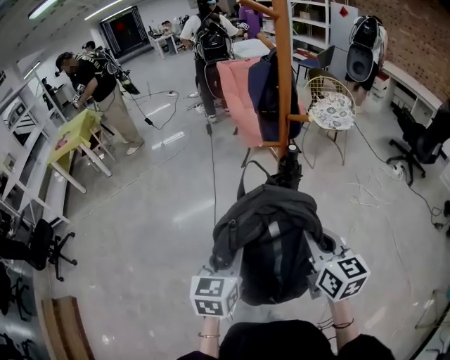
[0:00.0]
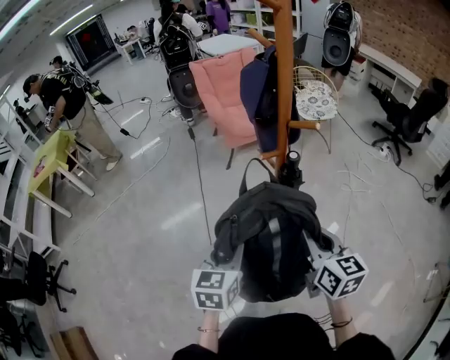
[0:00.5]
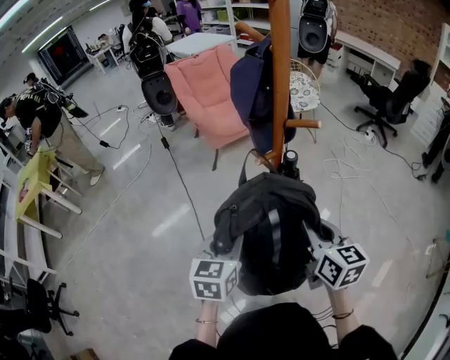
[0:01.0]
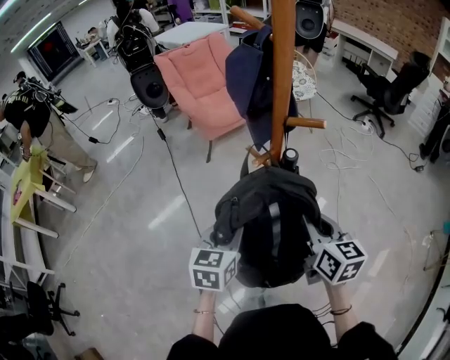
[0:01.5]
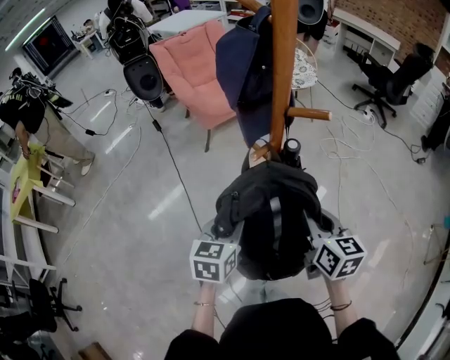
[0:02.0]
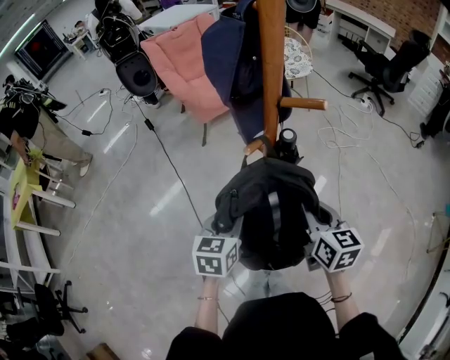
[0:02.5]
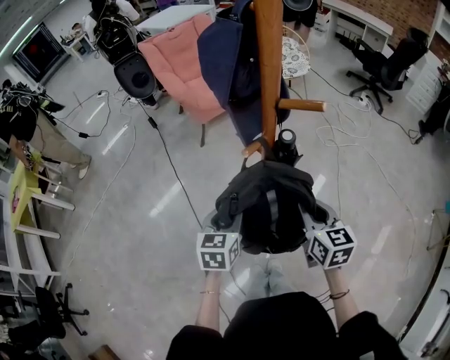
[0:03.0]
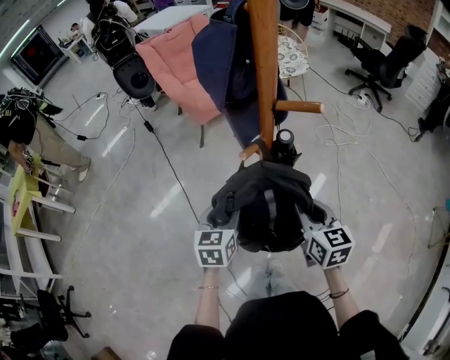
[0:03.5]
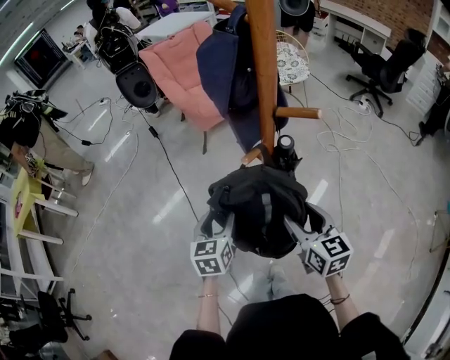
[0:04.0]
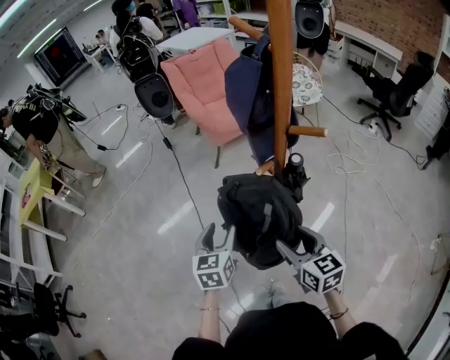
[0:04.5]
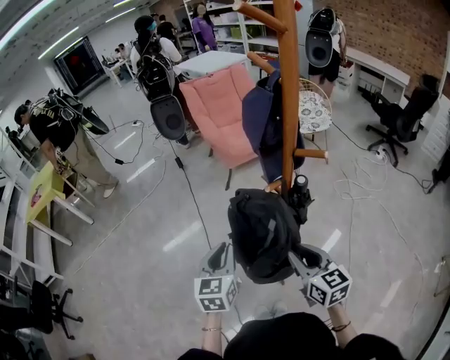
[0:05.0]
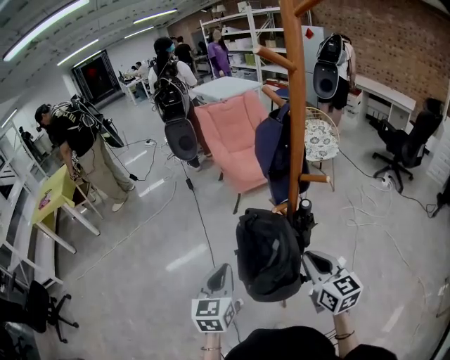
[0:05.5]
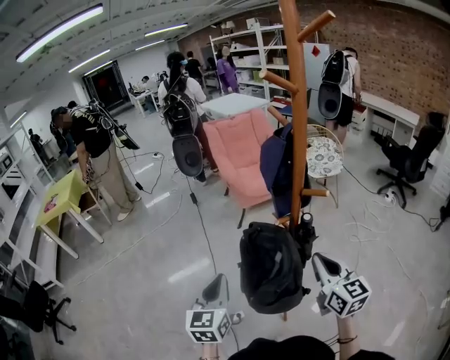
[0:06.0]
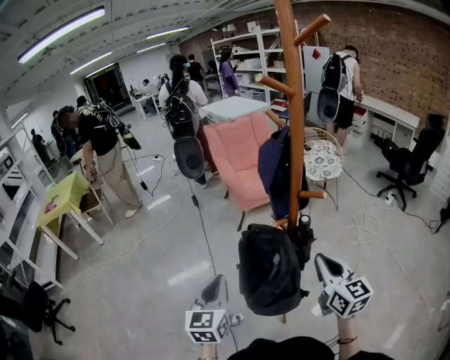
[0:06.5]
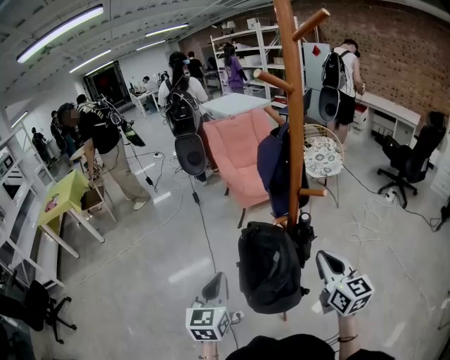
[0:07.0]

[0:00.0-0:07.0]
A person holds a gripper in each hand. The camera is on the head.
0:00.0 to 0:02.0: Both grippers move forward and downward, roughly 20 cm. The left gripper turns by some 30 degrees, while the right gripper changes its angle by about 20 degrees.
0:02.0 to 0:03.5: The left gripper moves roughly 5 cm.
0:03.5 to 0:05.0: The left gripper heads upward, to the left and backward, covering approximately 15 cm, and closes up. The right gripper heads to the left, covering about 5 cm, and opens, then closes again.
0:05.0 to 0:07.0: The left gripper travels upward by roughly 5 cm; the right gripper goes roughly 10 cm upward and to the right, and closes.

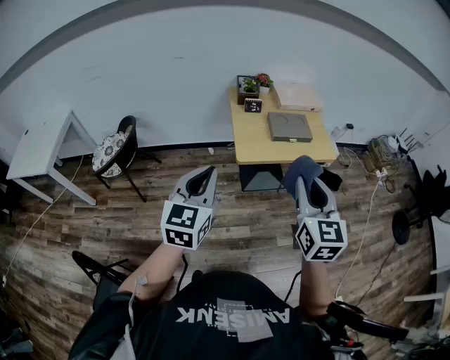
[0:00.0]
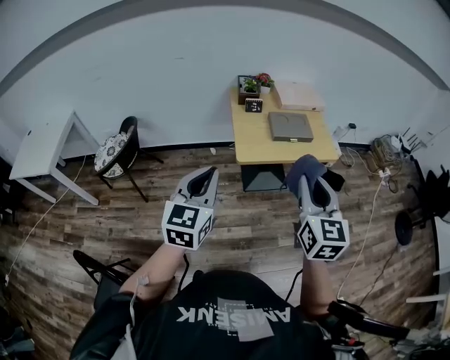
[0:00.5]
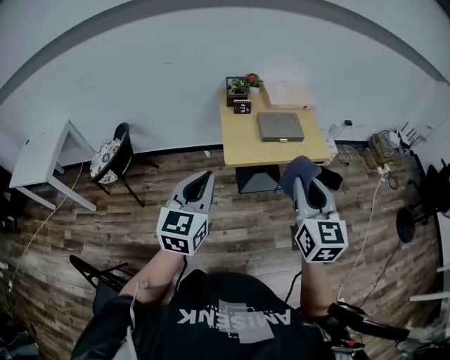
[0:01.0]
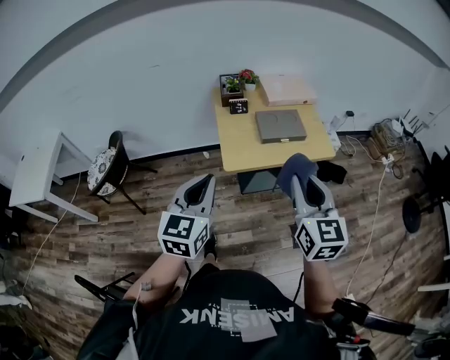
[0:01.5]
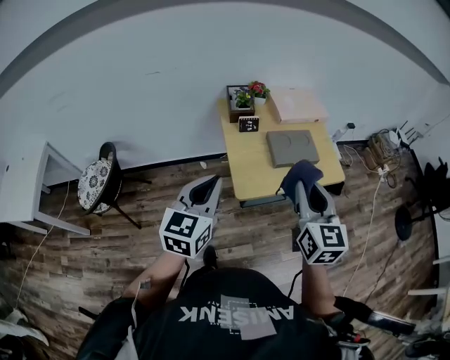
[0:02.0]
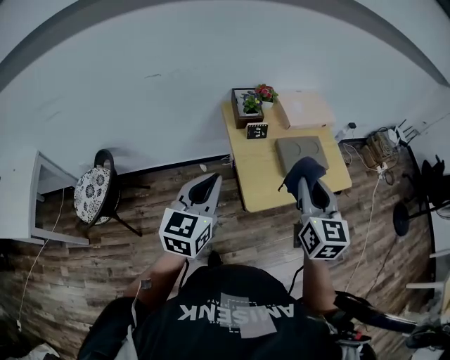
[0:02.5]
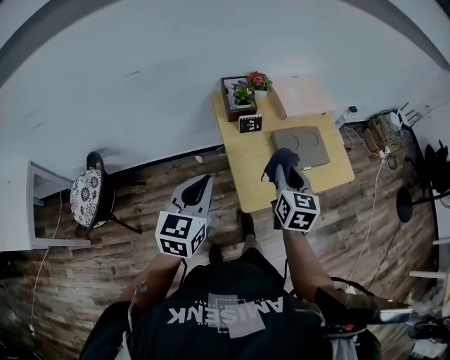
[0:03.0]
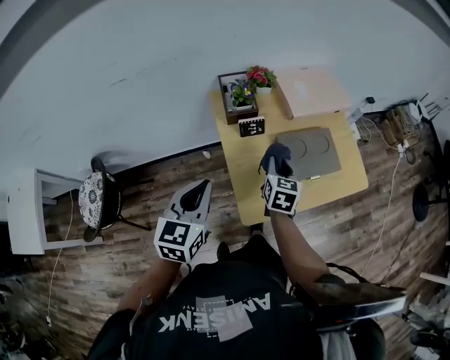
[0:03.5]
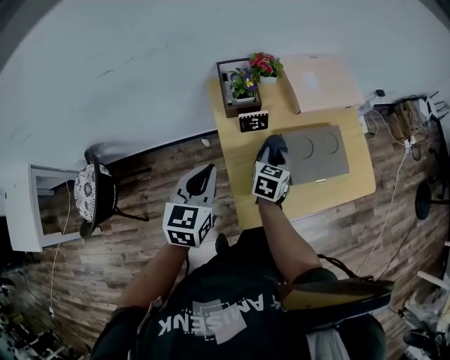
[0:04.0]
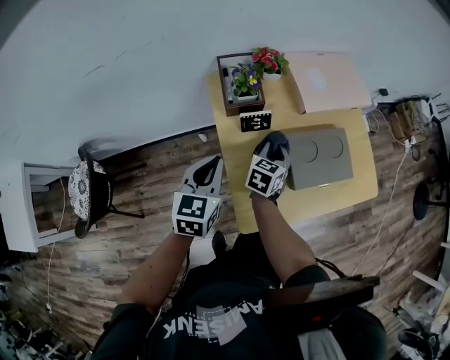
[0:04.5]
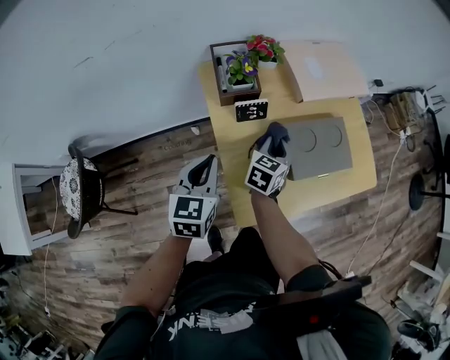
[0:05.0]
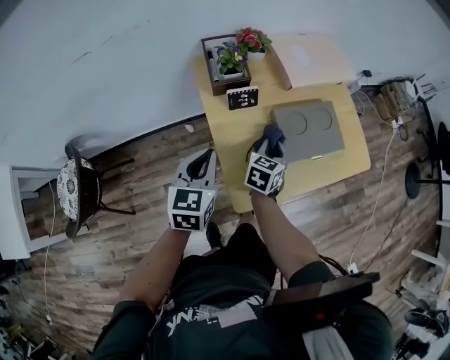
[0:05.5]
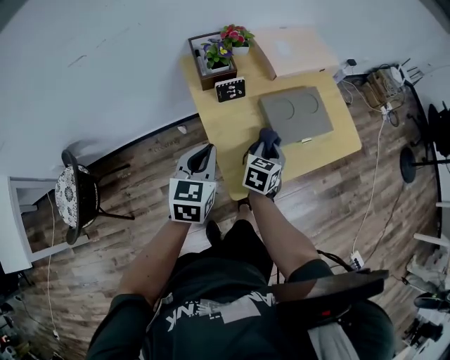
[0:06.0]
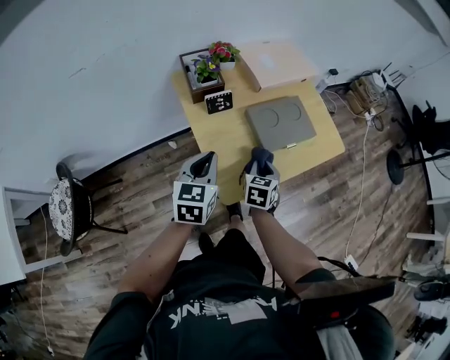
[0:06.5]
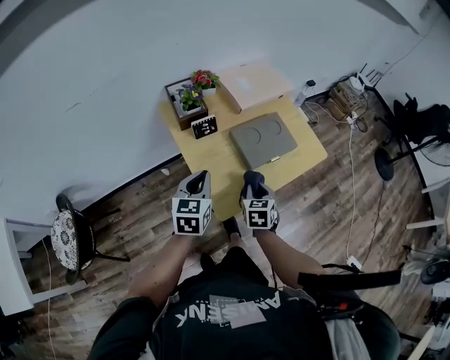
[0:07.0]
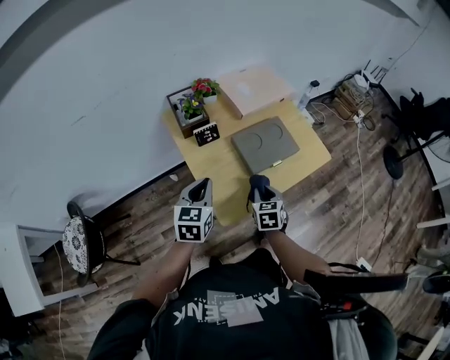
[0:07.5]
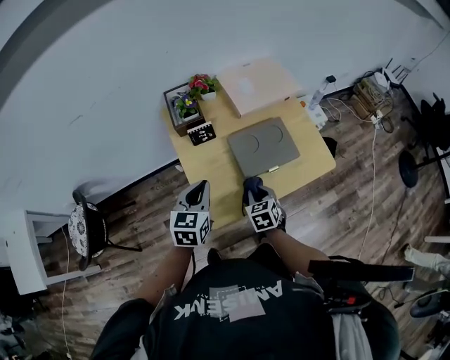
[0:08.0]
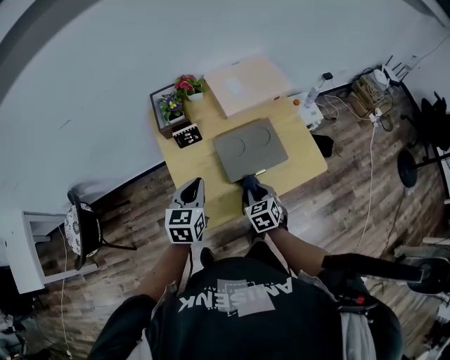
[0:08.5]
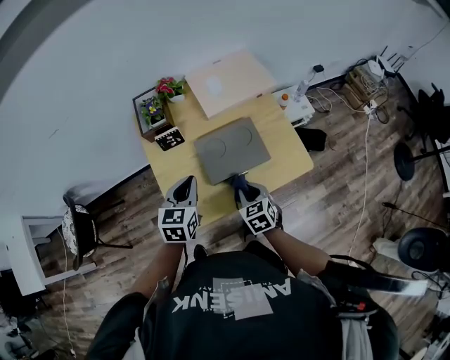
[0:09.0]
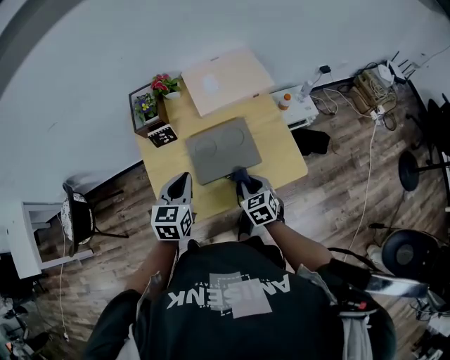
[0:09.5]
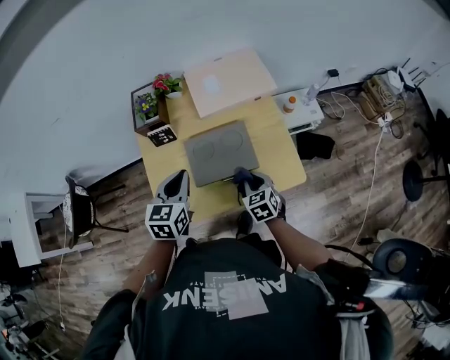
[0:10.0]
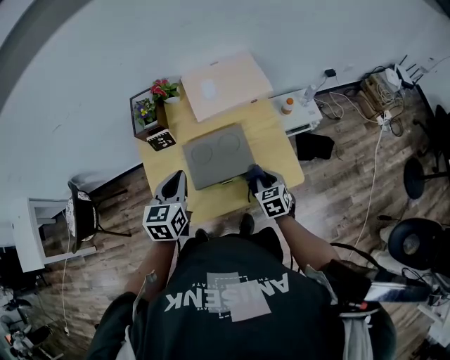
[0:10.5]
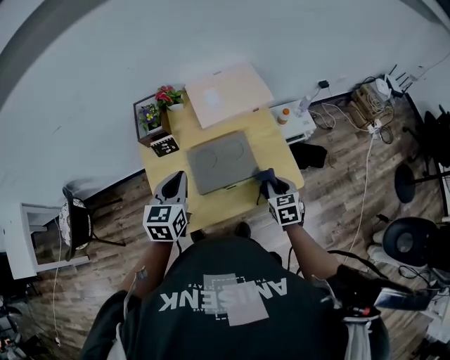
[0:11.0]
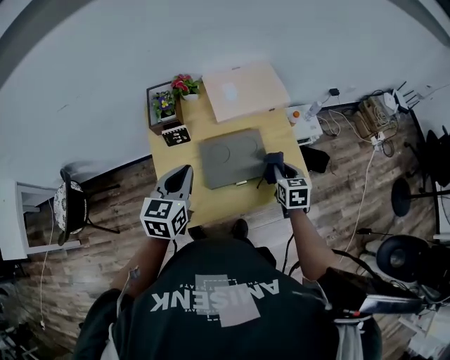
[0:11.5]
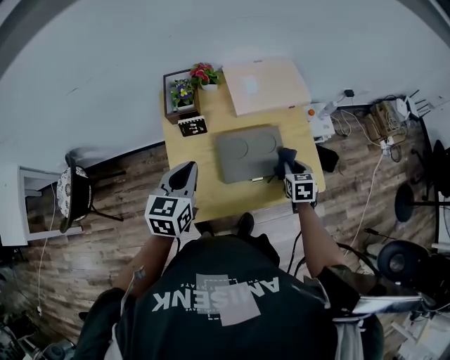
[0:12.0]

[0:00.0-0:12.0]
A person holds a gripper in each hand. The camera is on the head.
0:00.0 to 0:02.0: Both grippers travel together forward, roughly 20 cm.
0:02.0 to 0:04.0: The left gripper is displaced forward and downward by about 30 cm; the right gripper goes some 50 cm forward and downward, and turns by roughly 30 degrees.
0:04.0 to 0:06.0: The left gripper is displaced downward by about 5 cm. Meanwhile the right gripper travels backward and to the right by some 10 cm.
0:06.0 to 0:08.0: The two grippers go roughly 5 cm to the right. The right gripper rotates approximately 30 degrees.
0:08.0 to 0:10.0: The grippers both shift to the right by roughly 15 cm.
0:10.0 to 0:12.0: The right gripper goes some 10 cm forward and to the right; the left gripper moves to the left, approximately 10 cm.

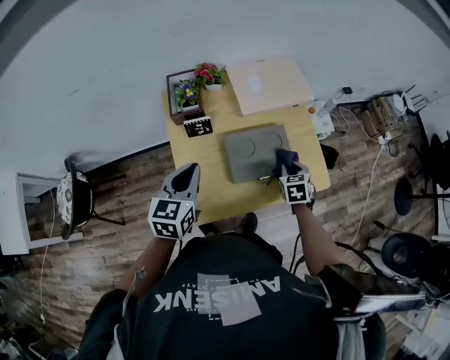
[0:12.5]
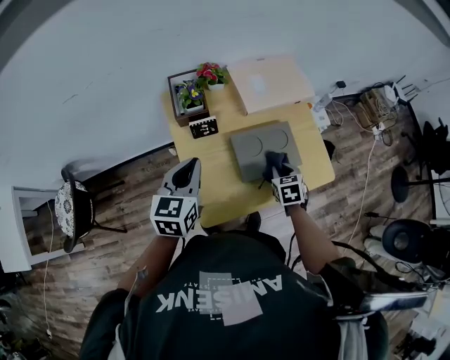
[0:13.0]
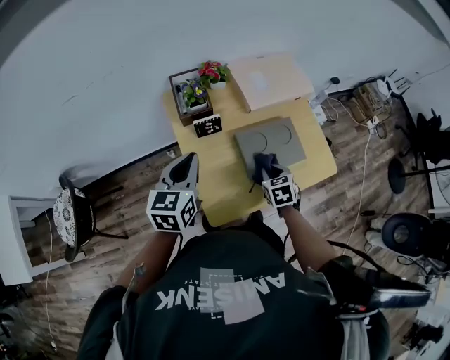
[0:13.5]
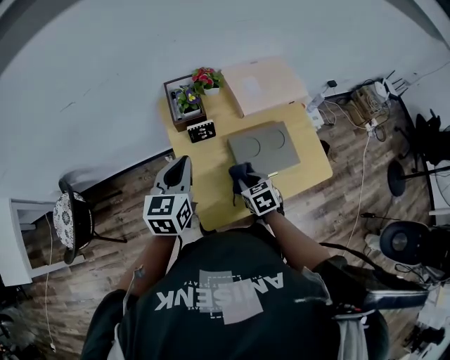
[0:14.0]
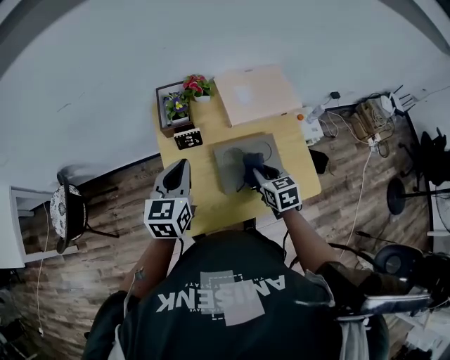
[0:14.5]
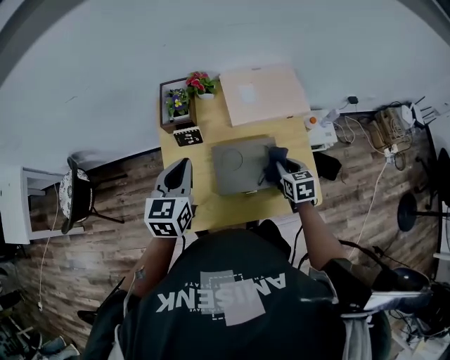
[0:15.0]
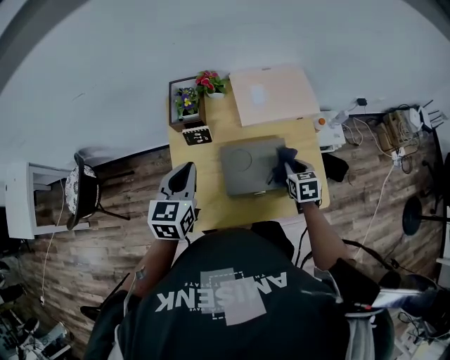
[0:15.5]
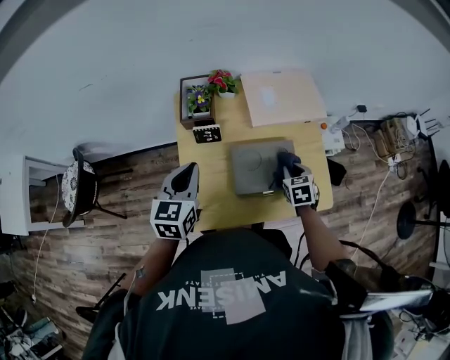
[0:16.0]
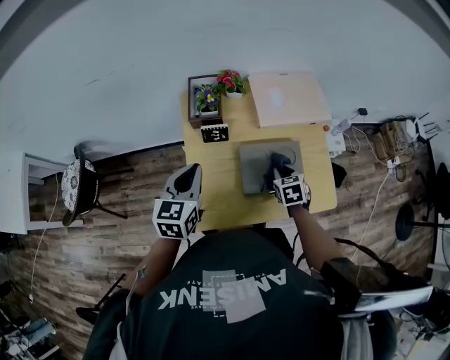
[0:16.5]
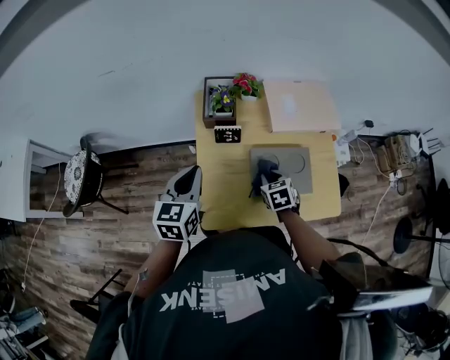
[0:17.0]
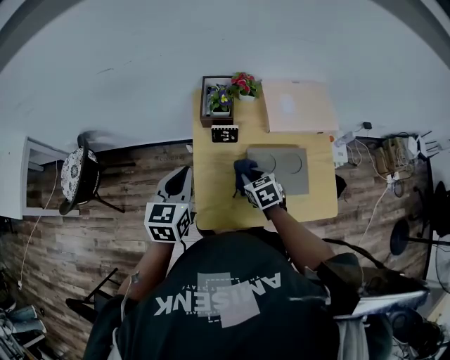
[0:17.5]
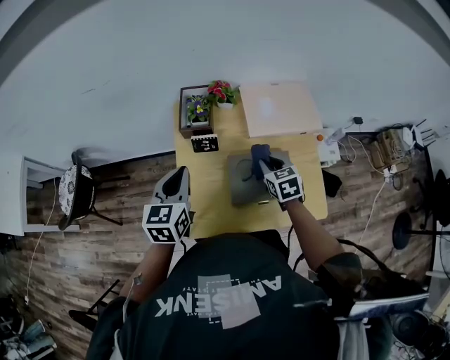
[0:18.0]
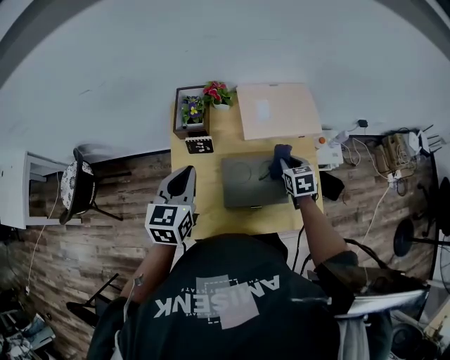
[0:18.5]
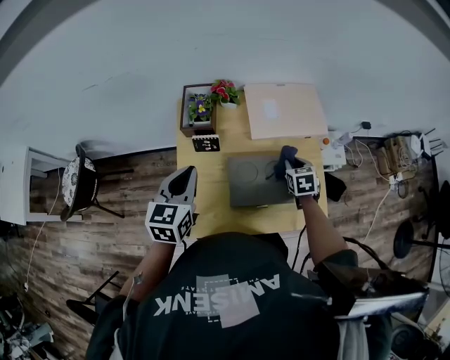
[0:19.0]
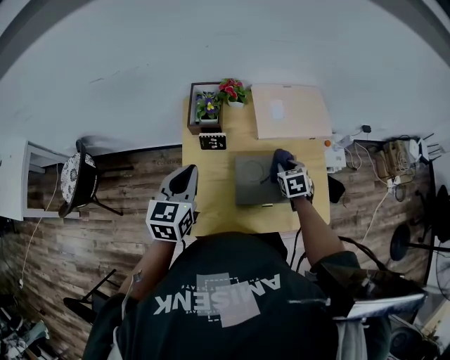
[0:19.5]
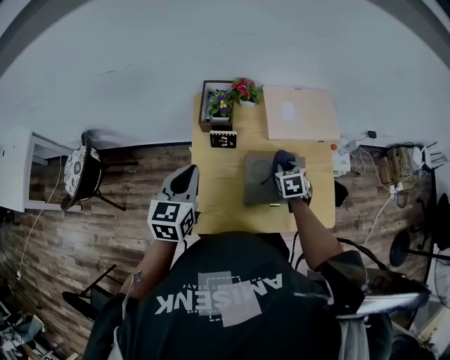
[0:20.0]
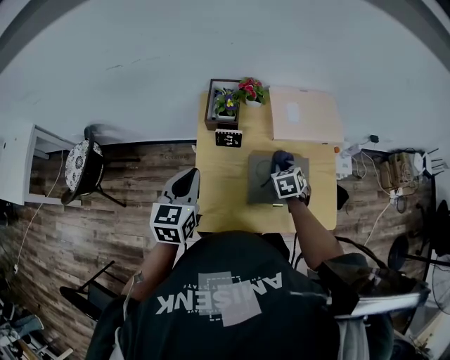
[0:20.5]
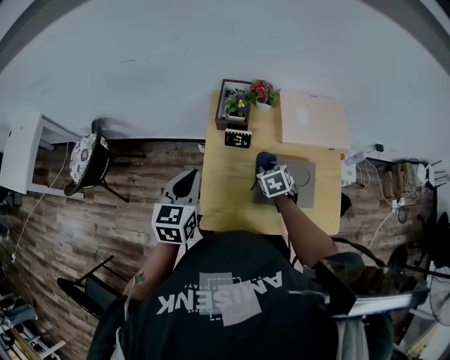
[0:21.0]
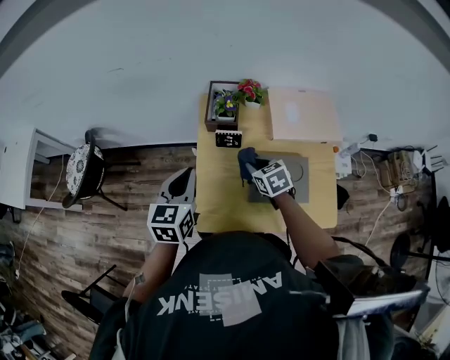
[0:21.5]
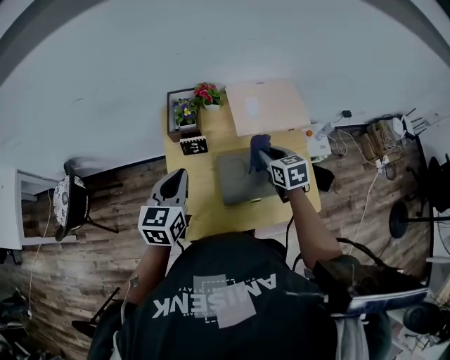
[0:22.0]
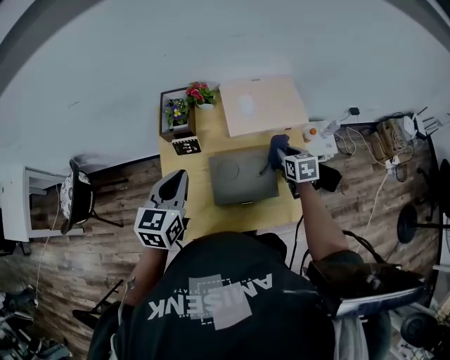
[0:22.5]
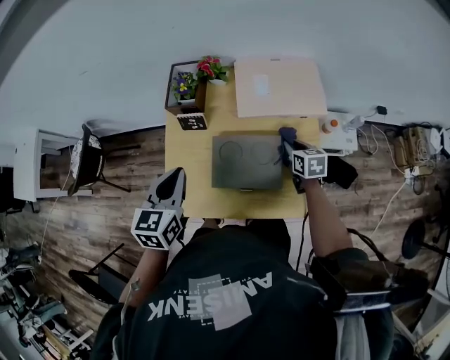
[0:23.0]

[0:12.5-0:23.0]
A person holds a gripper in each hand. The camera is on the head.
0:12.5 to 0:14.5: The right gripper moves to the left and upward, approximately 10 cm, and swivels approximately 20 degrees.
0:14.5 to 0:16.5: The right gripper travels to the right and back again, some 10 cm each way.
0:16.5 to 0:19.0: The right gripper moves to the right and forward, roughly 10 cm. Meanwhile the left gripper reaches approximately 5 cm to the right, then returns.
0:19.0 to 0:21.0: The right gripper moves to the left, approximately 20 cm. The left gripper is displaced to the left by approximately 10 cm.
0:21.0 to 0:23.0: The left gripper is displaced to the right by approximately 15 cm. The right gripper travels to the right by approximately 25 cm, and turns by some 30 degrees.
